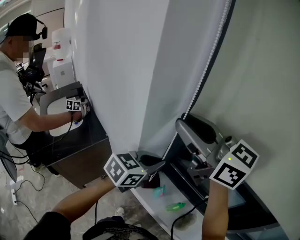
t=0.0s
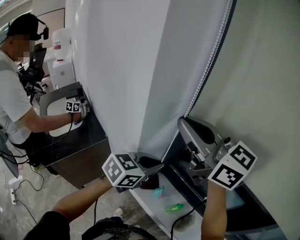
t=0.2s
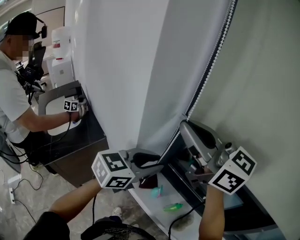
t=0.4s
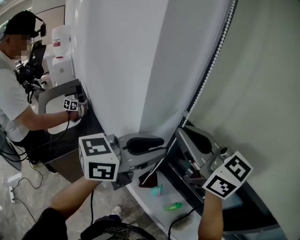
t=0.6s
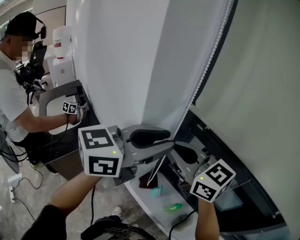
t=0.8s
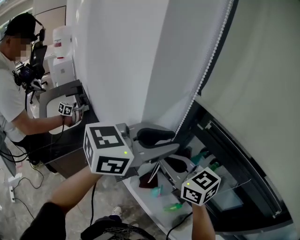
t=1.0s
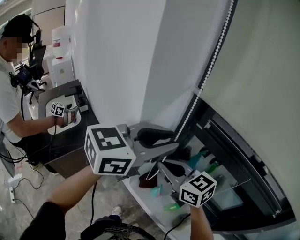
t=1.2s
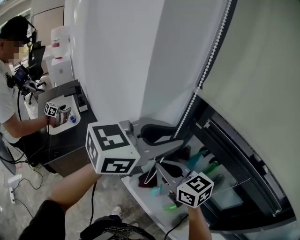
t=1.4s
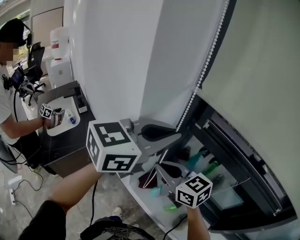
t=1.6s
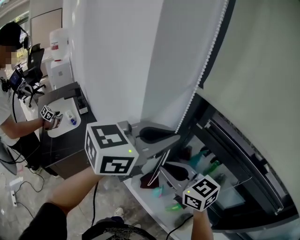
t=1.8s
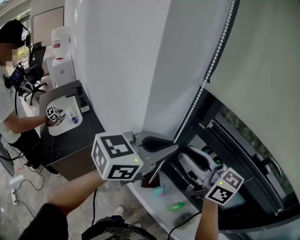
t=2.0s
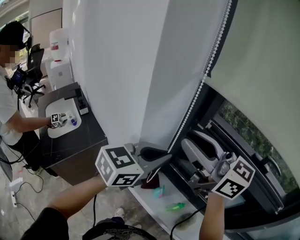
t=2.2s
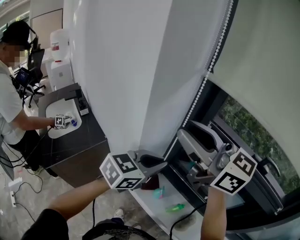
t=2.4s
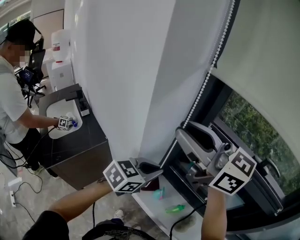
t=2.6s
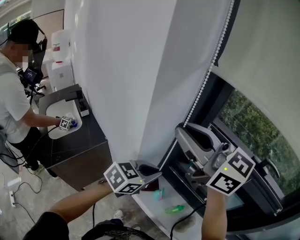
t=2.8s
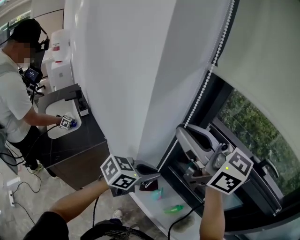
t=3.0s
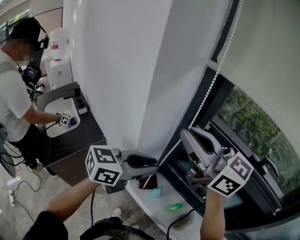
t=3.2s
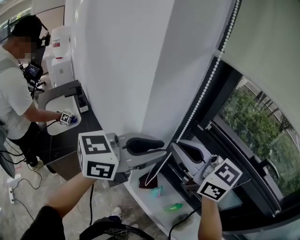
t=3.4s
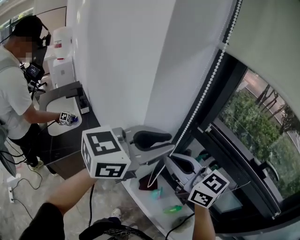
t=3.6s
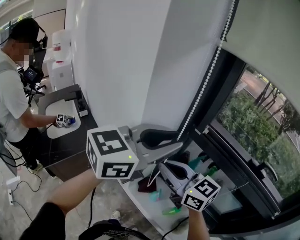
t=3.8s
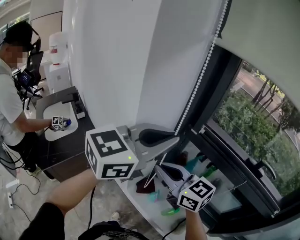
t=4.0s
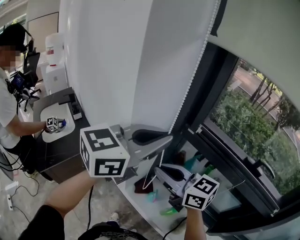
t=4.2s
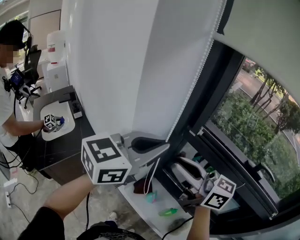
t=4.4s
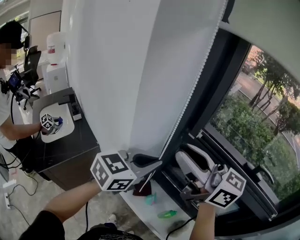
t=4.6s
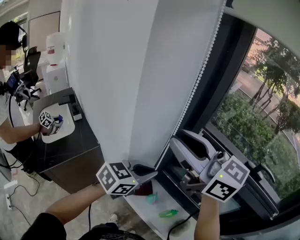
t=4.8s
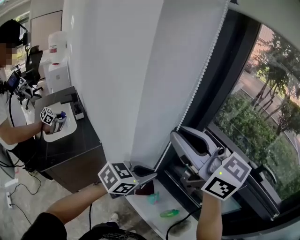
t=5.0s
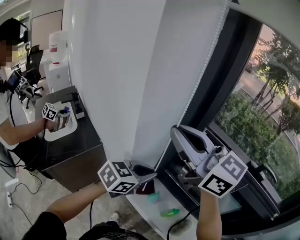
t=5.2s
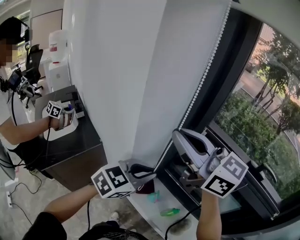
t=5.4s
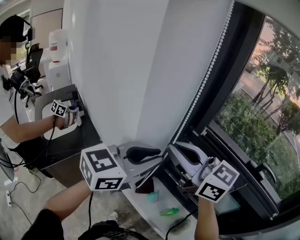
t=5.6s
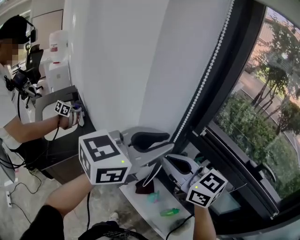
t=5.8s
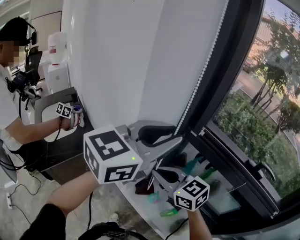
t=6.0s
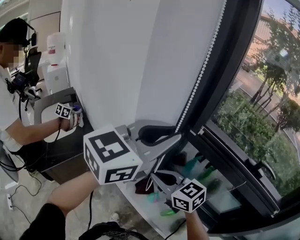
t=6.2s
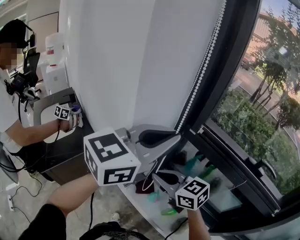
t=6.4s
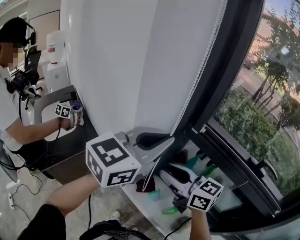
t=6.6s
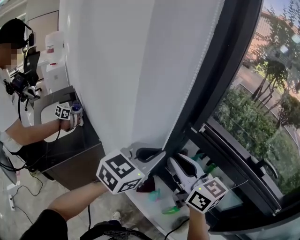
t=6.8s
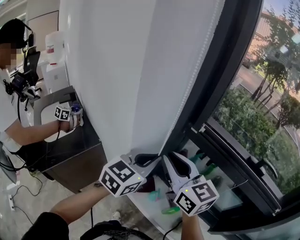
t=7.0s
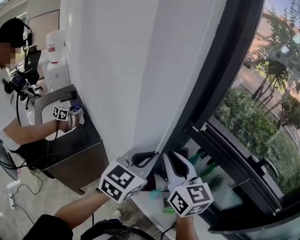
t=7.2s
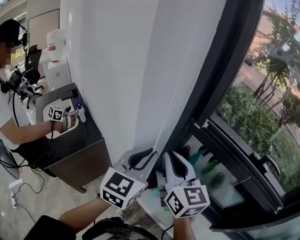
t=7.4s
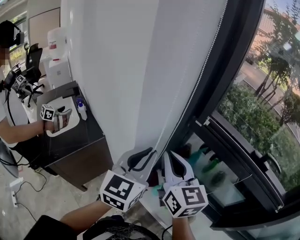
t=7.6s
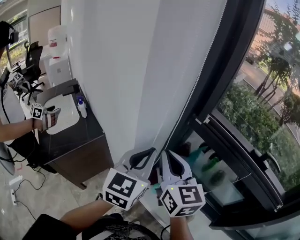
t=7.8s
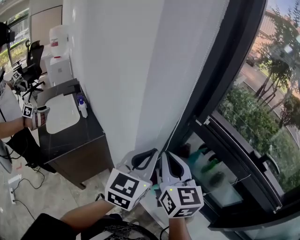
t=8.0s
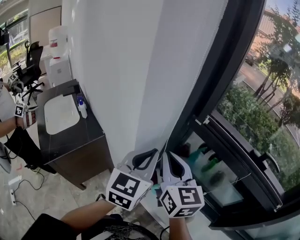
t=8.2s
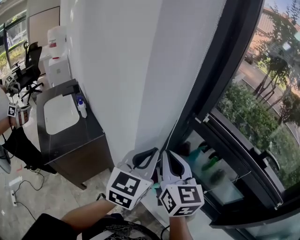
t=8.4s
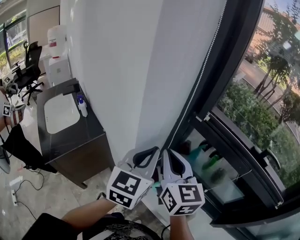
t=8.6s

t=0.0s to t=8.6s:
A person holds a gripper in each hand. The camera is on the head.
t=0.0s to t=1.4s: The right gripper travels downward by about 20 cm, turns by about 20 degrees, and closes; the left gripper moves upward, roughly 20 cm, rotates approximately 20 degrees, and opens up.
t=1.4s to t=2.8s: The right gripper is displaced upward by some 20 cm, and turns by roughly 20 degrees. The left gripper goes about 20 cm downward, turns by some 20 degrees, and closes up.
t=2.8s to t=4.4s: The left gripper heads upward, covering approximately 20 cm, and swivels about 20 degrees; the right gripper moves downward and to the right, roughly 15 cm, and turns by roughly 20 degrees.
t=4.4s to t=5.8s: The left gripper travels downward and back again, roughly 20 cm each way, while the right gripper travels to the left by some 5 cm, moves approximately 10 cm upward and comes back, and swivels about 20 degrees.
t=5.8s to t=7.2s: The left gripper travels downward by some 15 cm, and turns by about 20 degrees. The right gripper reaches roughly 10 cm downward, then returns, and swivels about 30 degrees.
t=7.2s to t=8.6s: There are only small adjustments of the grippers.

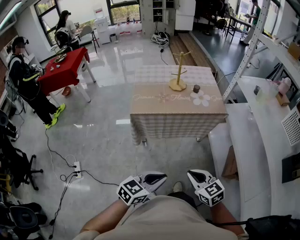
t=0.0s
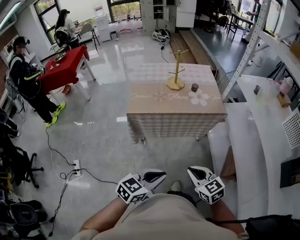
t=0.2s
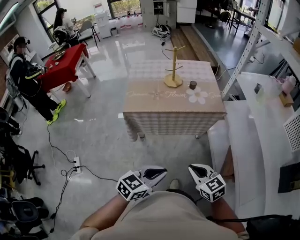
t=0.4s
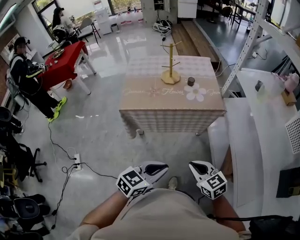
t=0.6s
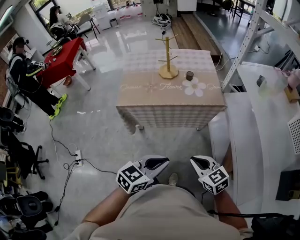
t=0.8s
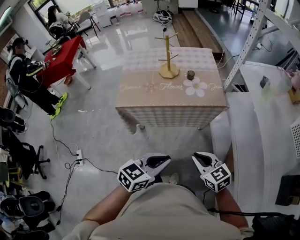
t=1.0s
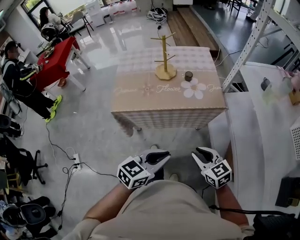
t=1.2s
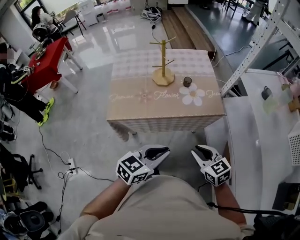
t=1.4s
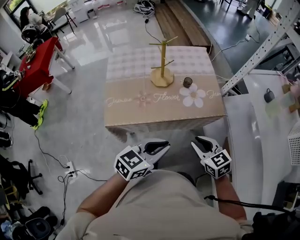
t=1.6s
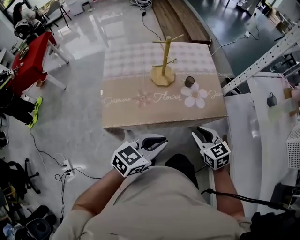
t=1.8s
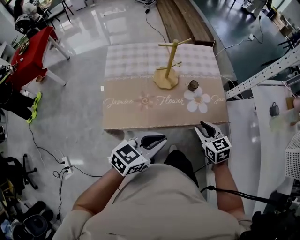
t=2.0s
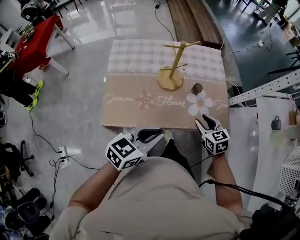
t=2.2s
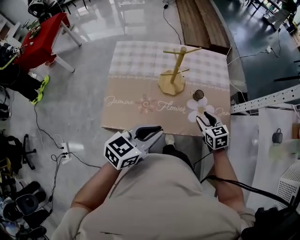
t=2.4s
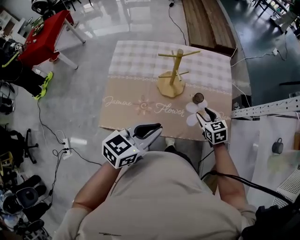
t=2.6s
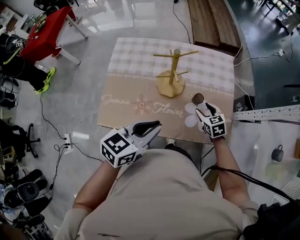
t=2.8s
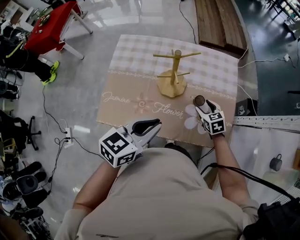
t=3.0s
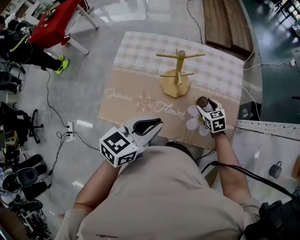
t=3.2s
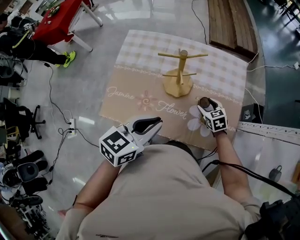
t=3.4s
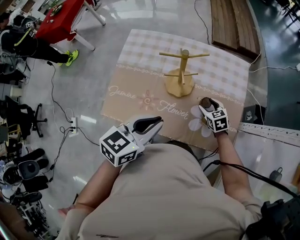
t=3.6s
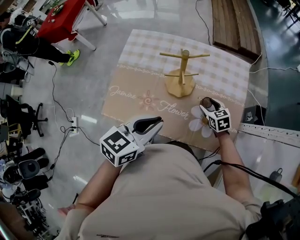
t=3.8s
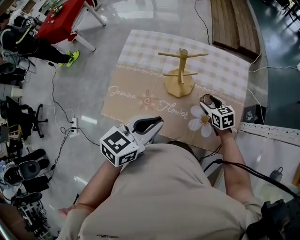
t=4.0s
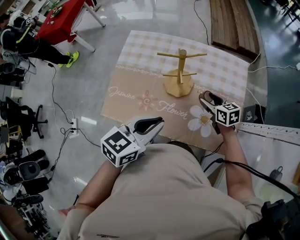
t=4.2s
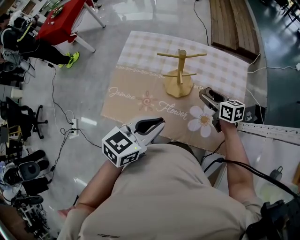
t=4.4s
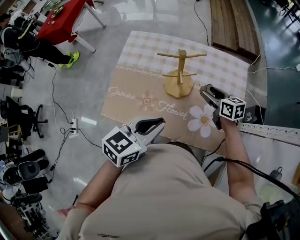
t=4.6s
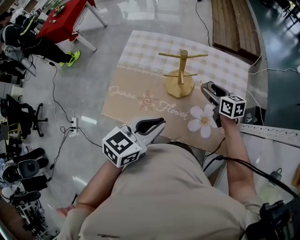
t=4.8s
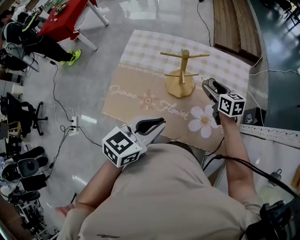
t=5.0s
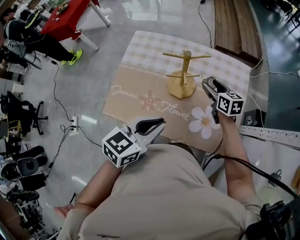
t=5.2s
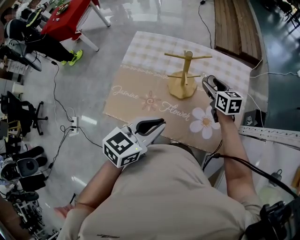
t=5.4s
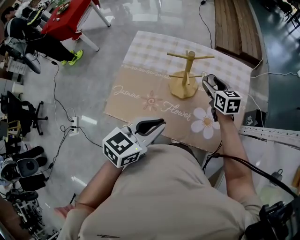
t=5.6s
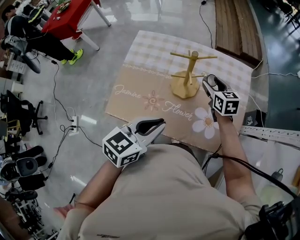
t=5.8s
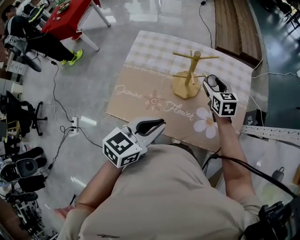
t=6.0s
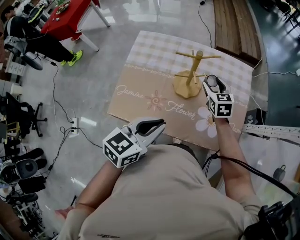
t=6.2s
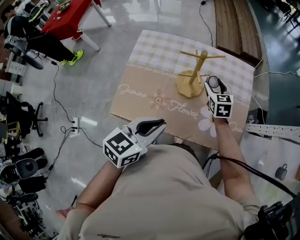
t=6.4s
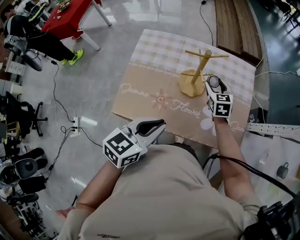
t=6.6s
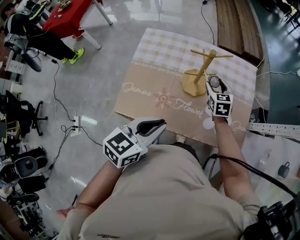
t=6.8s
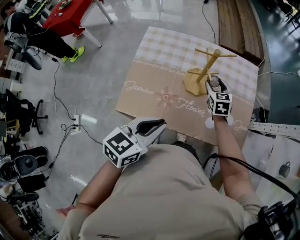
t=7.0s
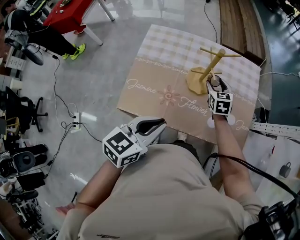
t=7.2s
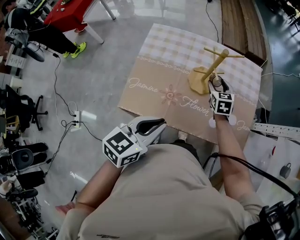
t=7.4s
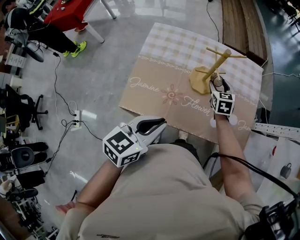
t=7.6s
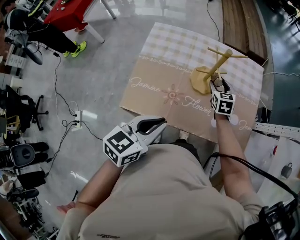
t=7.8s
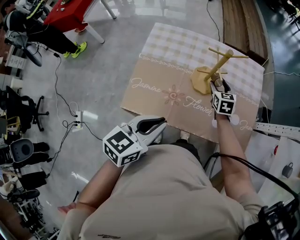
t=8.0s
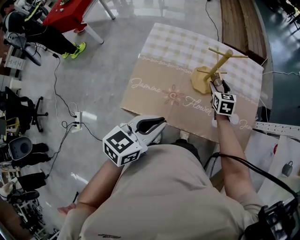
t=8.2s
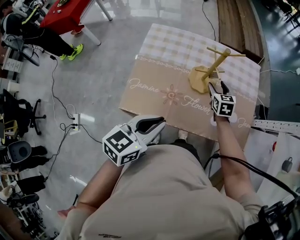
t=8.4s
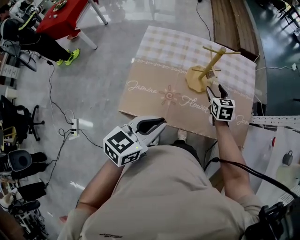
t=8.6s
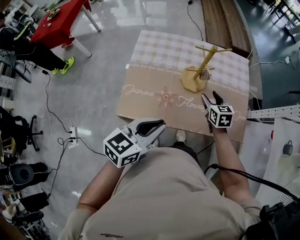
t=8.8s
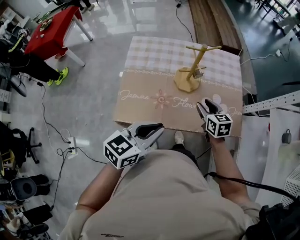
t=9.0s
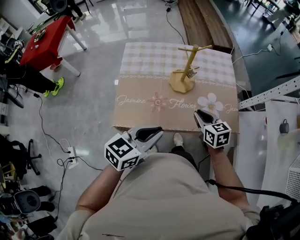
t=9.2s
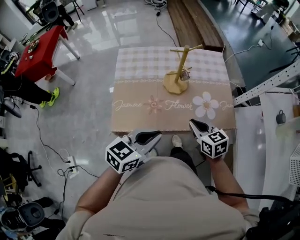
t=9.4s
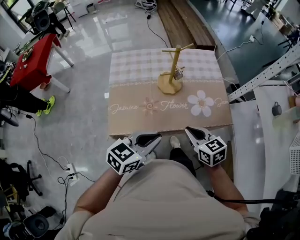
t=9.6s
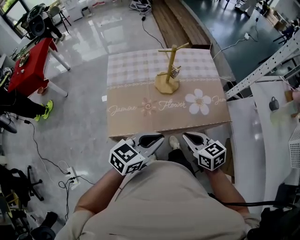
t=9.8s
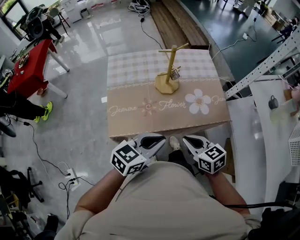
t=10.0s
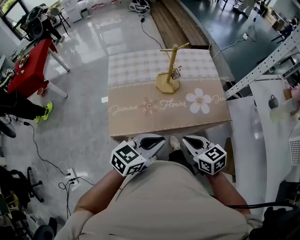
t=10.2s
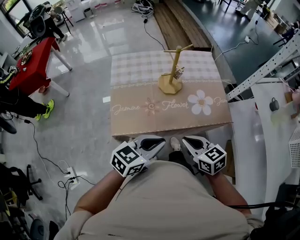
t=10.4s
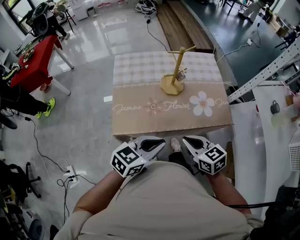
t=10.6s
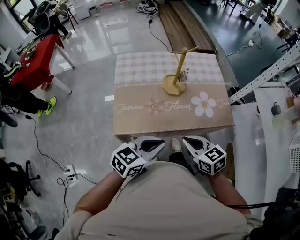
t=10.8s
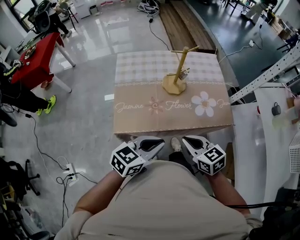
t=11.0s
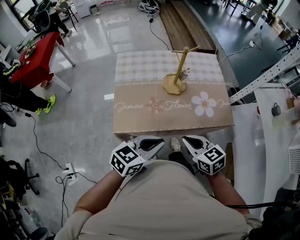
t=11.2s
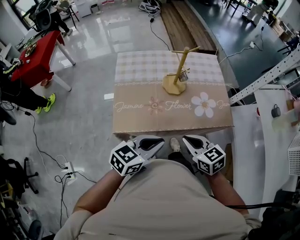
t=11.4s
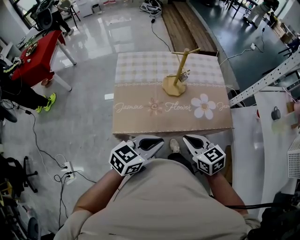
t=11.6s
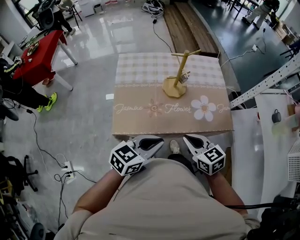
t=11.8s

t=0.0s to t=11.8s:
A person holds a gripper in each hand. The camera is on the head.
t=0.0s to t=1.4s: Both grippers move forward, some 30 cm.
t=1.4s to t=3.0s: Both grippers travel together forward, roughly 35 cm. The right gripper opens its fingers.
t=3.0s to t=4.4s: The right gripper shifts some 10 cm upward and forward, and swivels roughly 30 degrees.
t=4.4s to t=6.0s: The right gripper ends up about 10 cm from where it was, and changes its angle by approximately 30 degrees.
t=6.0s to t=7.4s: The right gripper changes place by some 5 cm, while the left gripper heads to the left and backward, covering roughly 10 cm.
t=7.4s to t=8.8s: The right gripper travels backward by about 10 cm.
t=8.8s to t=10.4s: The left gripper travels backward by about 10 cm, and changes its angle by roughly 20 degrees. Meanwhile the right gripper moves backward, about 30 cm, and closes its fingers.
t=10.4s to t=11.8s: There are only small adjustments of the grippers.

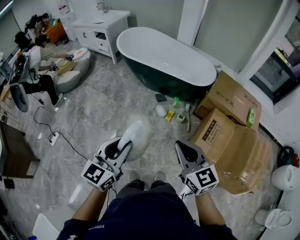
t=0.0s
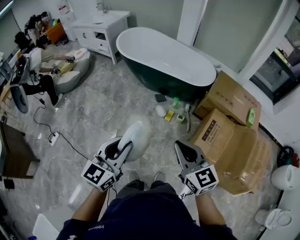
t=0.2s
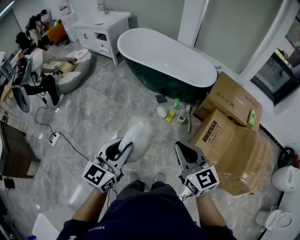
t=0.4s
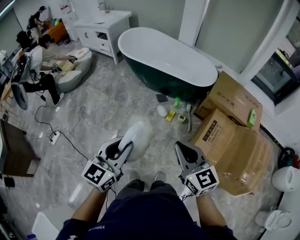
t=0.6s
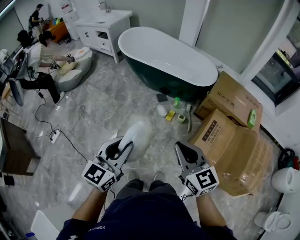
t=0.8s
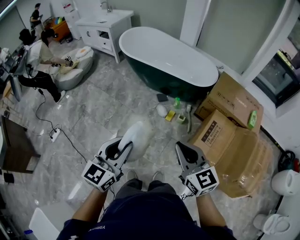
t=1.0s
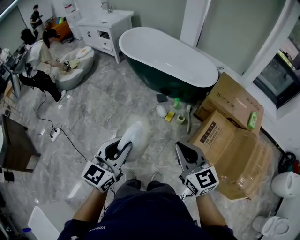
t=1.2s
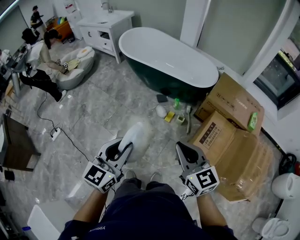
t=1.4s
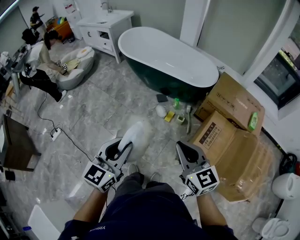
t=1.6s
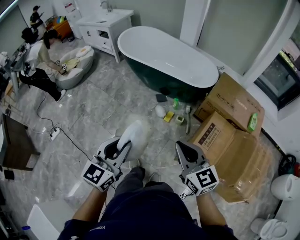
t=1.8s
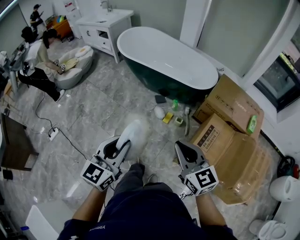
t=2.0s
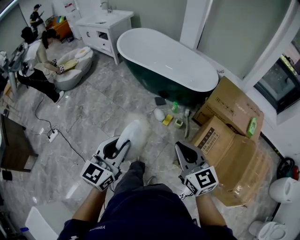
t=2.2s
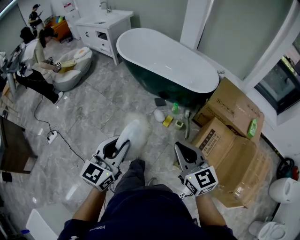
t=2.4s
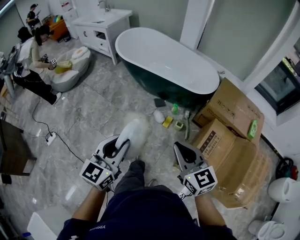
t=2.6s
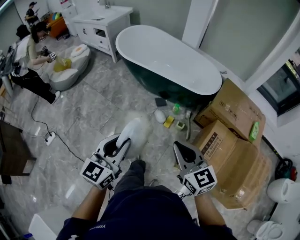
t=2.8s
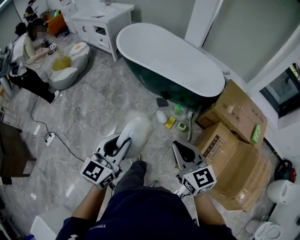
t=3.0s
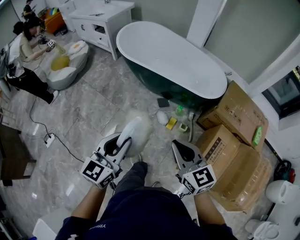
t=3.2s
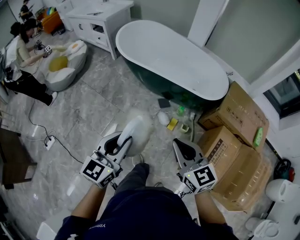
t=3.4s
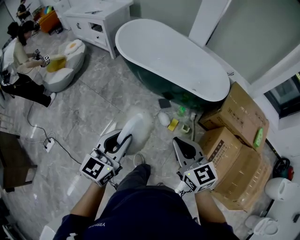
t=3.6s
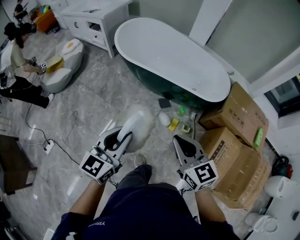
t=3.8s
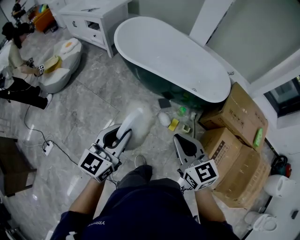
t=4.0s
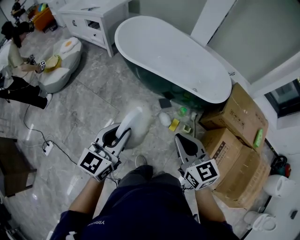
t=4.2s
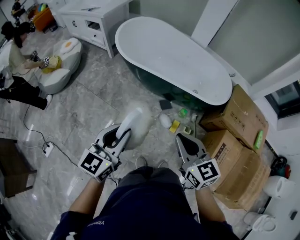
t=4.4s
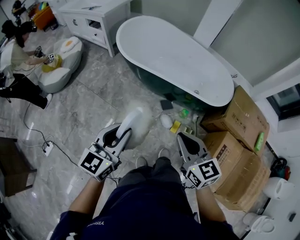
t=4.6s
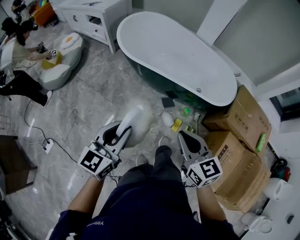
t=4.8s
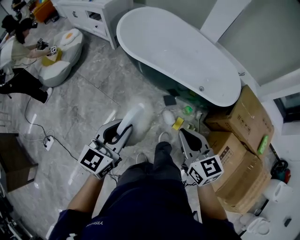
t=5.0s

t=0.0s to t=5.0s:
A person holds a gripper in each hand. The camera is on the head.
t=0.0s to t=1.6s: Both grippers move to the right, roughly 5 cm.
t=1.6s to t=3.4s: Both grippers move forward and to the left, approximately 30 cm.
t=3.4s to t=5.0s: The grippers both shift forward by roughly 20 cm.
